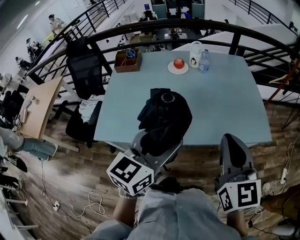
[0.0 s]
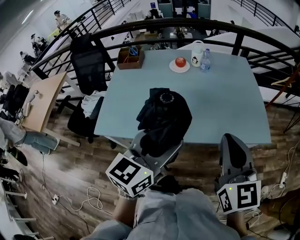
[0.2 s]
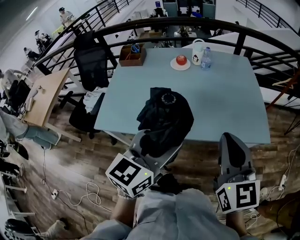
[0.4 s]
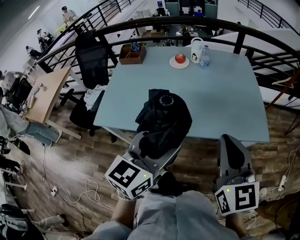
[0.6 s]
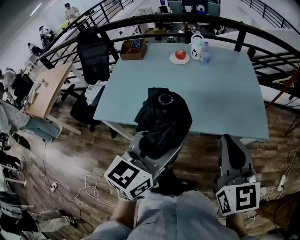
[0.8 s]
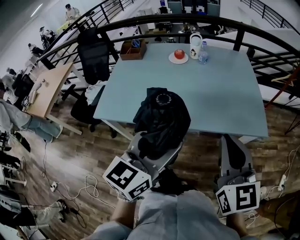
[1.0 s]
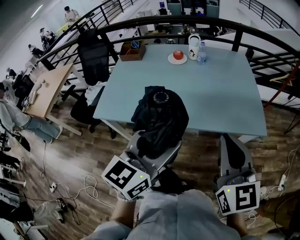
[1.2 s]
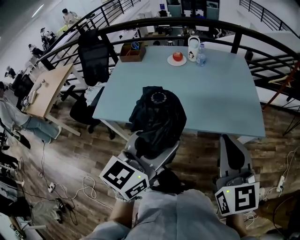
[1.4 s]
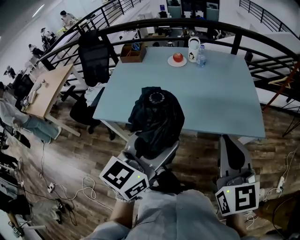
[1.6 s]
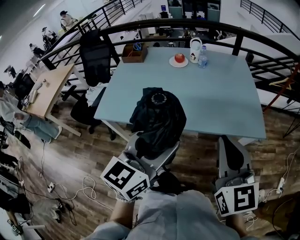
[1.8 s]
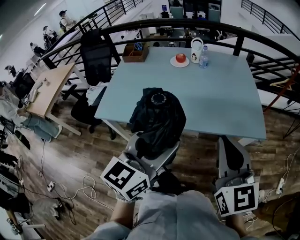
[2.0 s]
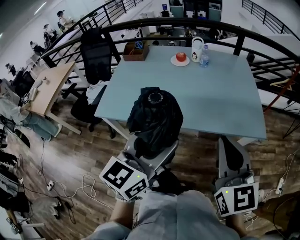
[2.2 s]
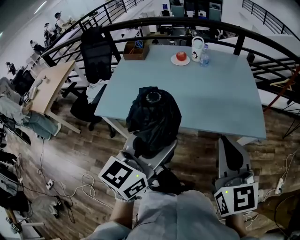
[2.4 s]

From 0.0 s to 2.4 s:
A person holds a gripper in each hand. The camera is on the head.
From 0.0 s to 1.2 s: The two grippers go roughly 10 cm to the right and backward.
From 1.2 s to 2.4 s: There are only small adjustments of the grippers.

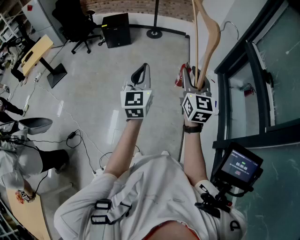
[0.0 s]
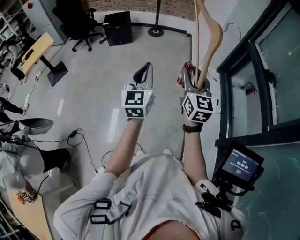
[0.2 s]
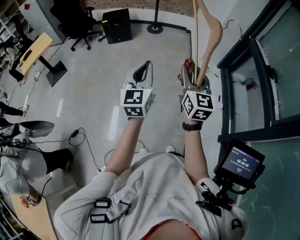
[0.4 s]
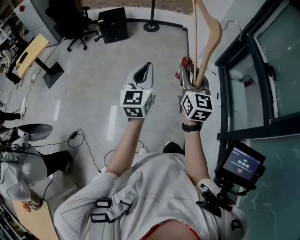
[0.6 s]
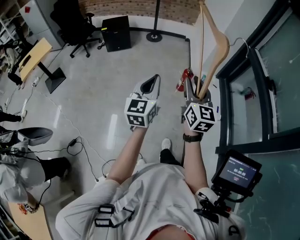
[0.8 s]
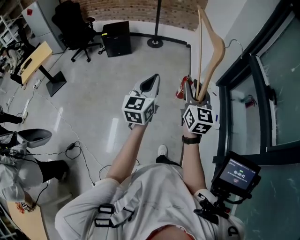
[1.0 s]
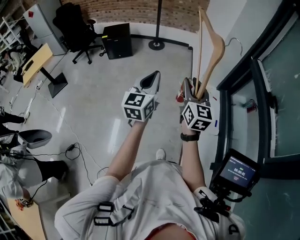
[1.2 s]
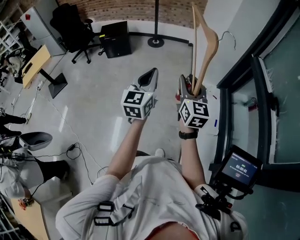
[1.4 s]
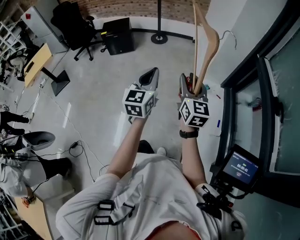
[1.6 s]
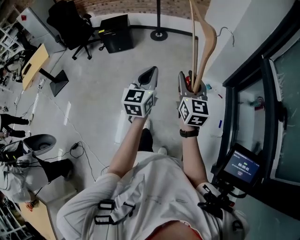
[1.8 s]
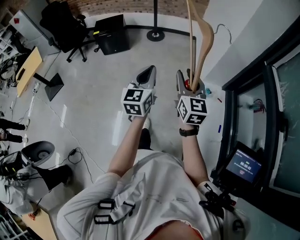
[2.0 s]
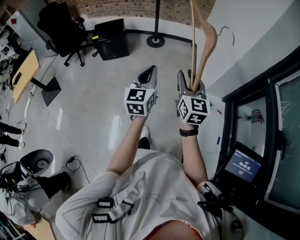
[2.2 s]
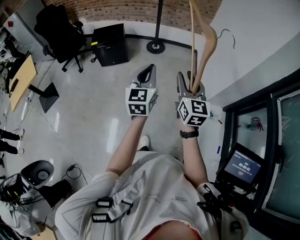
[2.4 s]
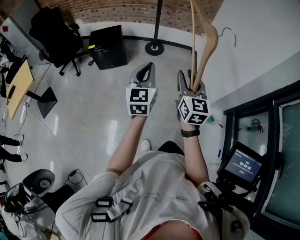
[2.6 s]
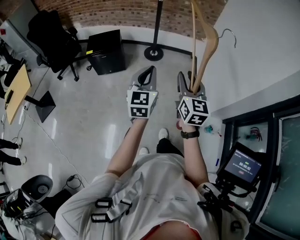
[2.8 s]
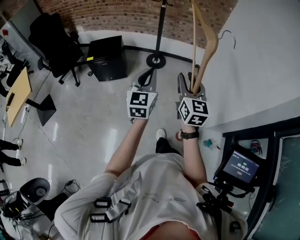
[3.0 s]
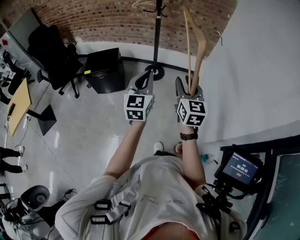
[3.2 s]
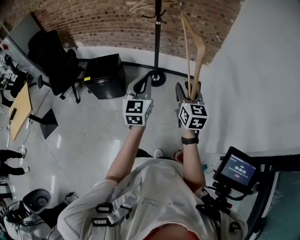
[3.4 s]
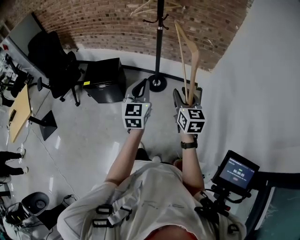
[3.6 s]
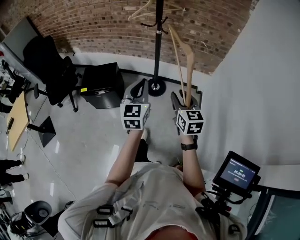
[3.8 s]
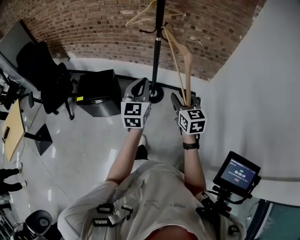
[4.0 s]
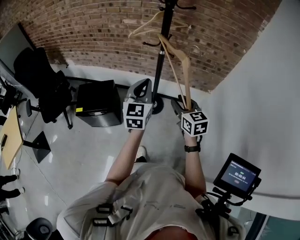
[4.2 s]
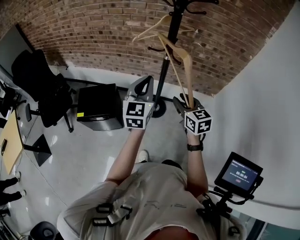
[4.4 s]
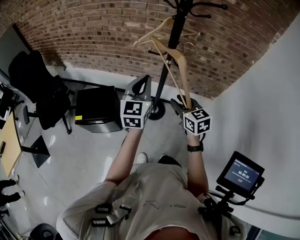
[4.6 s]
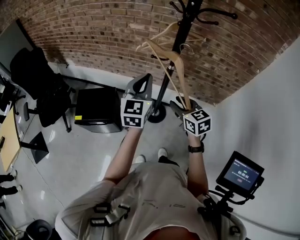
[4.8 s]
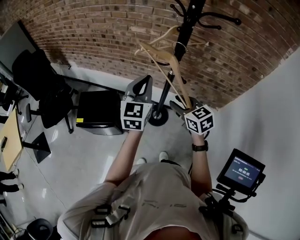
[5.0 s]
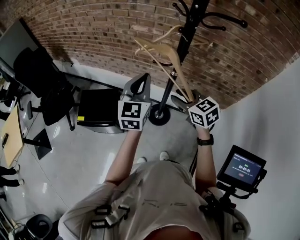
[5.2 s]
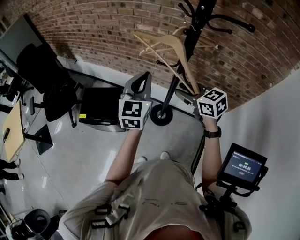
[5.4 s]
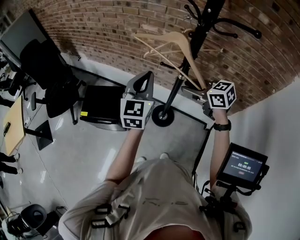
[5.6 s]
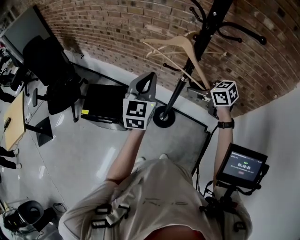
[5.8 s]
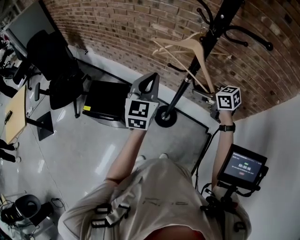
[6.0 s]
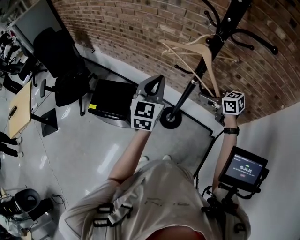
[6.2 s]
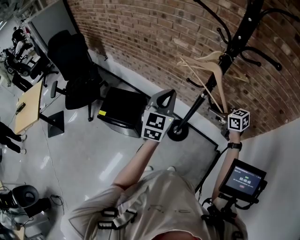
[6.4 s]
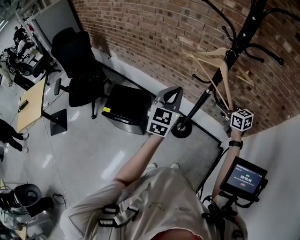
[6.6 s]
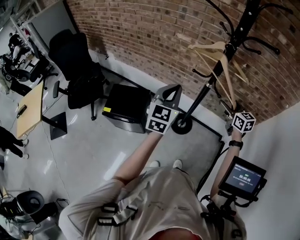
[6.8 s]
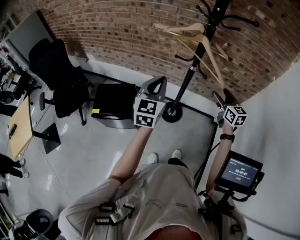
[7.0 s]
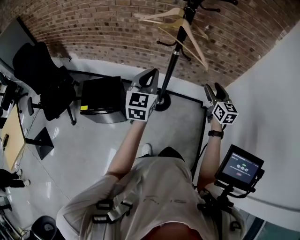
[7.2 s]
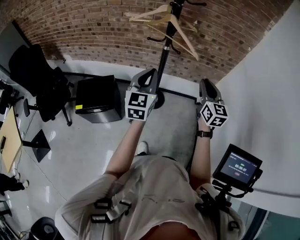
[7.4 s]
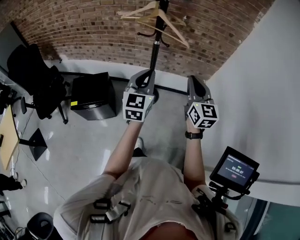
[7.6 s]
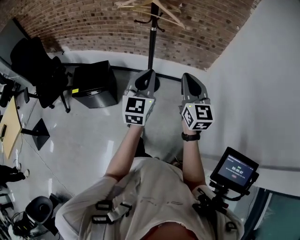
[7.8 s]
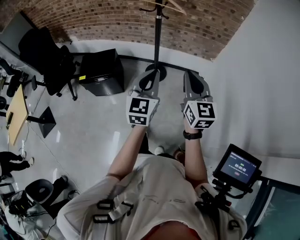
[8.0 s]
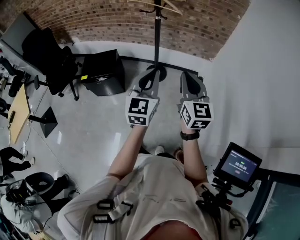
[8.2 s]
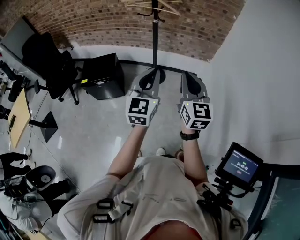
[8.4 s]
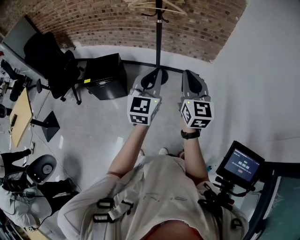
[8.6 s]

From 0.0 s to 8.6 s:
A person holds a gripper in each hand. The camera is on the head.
From 0.0 s to 1.4 s: The left gripper moves forward and to the right, approximately 20 cm. The right gripper heads forward, covering roughly 15 cm.
From 1.4 s to 2.8 s: The pair of grippers is taken forward, some 50 cm.
From 2.8 s to 4.4 s: Both grippers are carried forward, about 60 cm. The right gripper rotates some 30 degrees.
From 4.4 s to 5.8 s: The left gripper moves roughly 15 cm, while the right gripper ends up some 25 cm from where it was, and swivels approximately 40 degrees.
From 5.8 s to 7.2 s: The left gripper shifts by approximately 15 cm, while the right gripper changes place by some 20 cm, and changes its angle by some 60 degrees.
From 7.2 s to 8.6 s: The left gripper moves backward and to the right, about 30 cm; the right gripper shifts some 30 cm backward, and closes up.

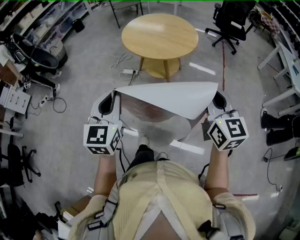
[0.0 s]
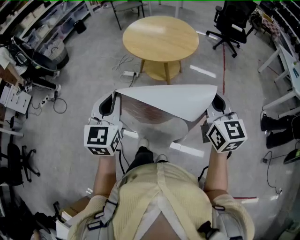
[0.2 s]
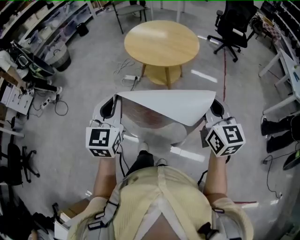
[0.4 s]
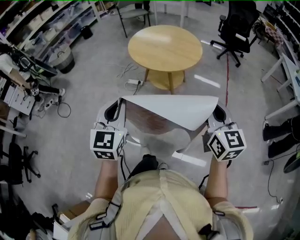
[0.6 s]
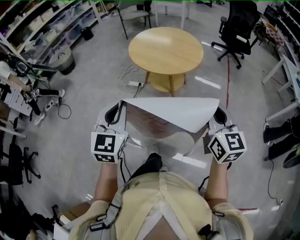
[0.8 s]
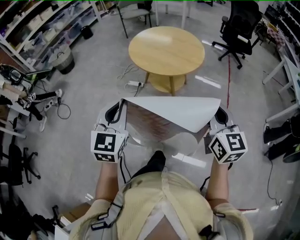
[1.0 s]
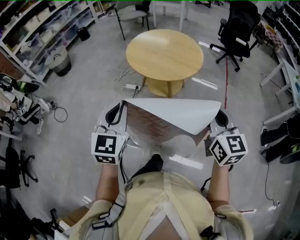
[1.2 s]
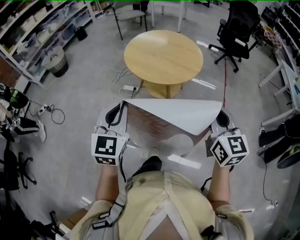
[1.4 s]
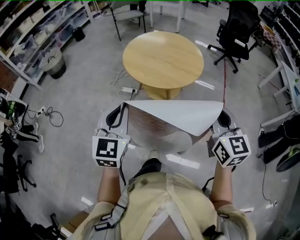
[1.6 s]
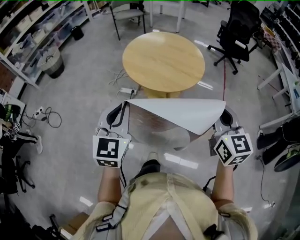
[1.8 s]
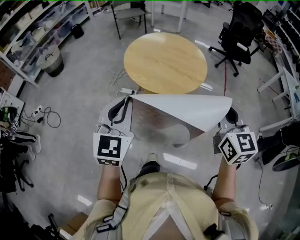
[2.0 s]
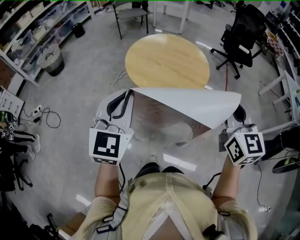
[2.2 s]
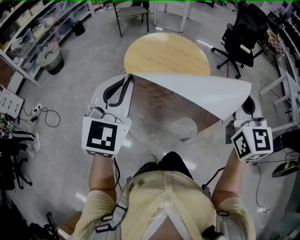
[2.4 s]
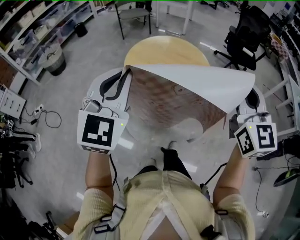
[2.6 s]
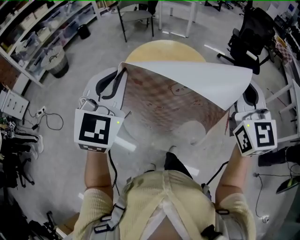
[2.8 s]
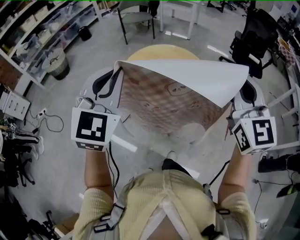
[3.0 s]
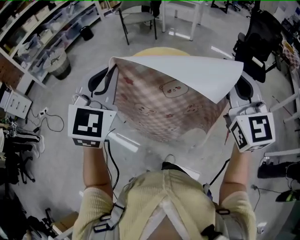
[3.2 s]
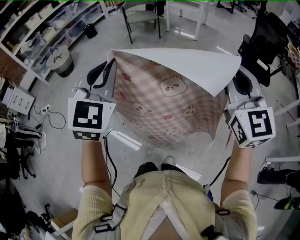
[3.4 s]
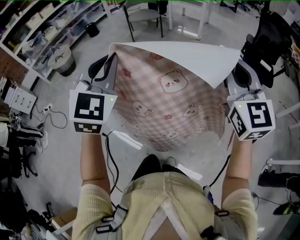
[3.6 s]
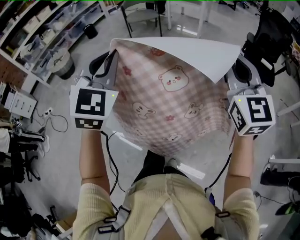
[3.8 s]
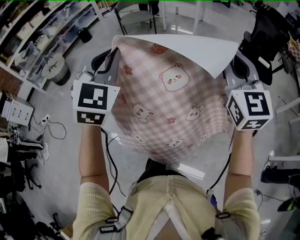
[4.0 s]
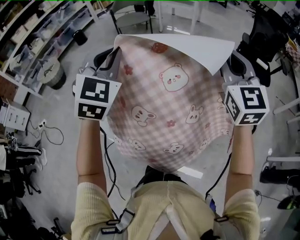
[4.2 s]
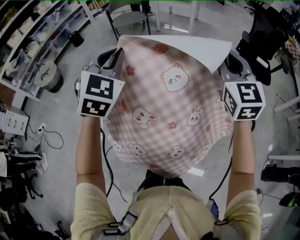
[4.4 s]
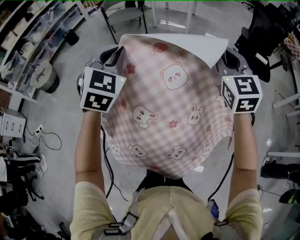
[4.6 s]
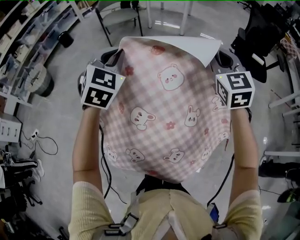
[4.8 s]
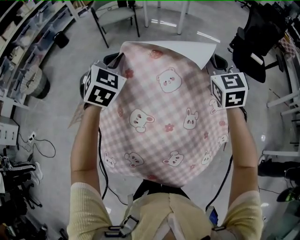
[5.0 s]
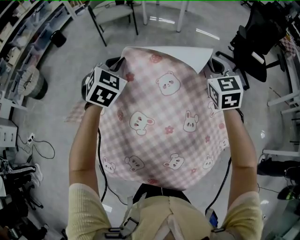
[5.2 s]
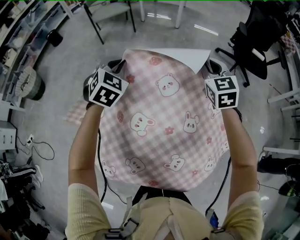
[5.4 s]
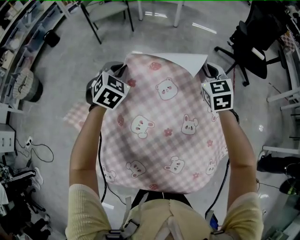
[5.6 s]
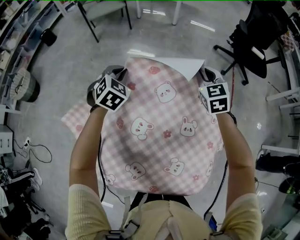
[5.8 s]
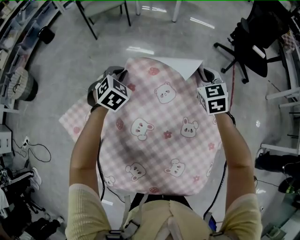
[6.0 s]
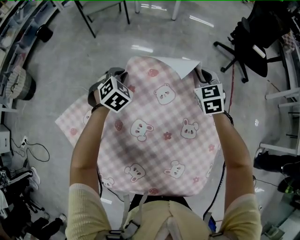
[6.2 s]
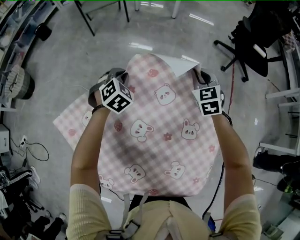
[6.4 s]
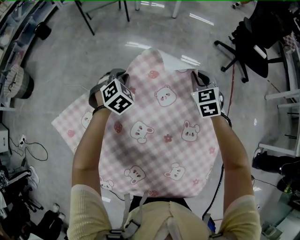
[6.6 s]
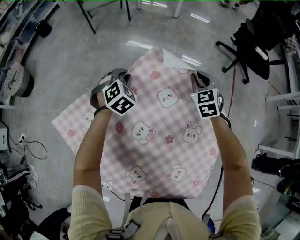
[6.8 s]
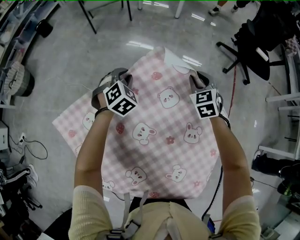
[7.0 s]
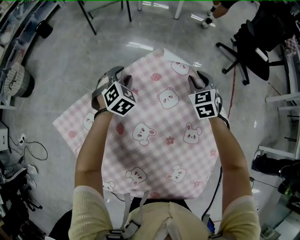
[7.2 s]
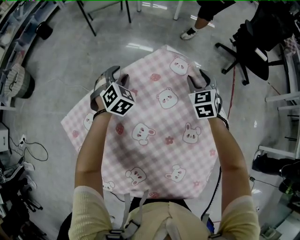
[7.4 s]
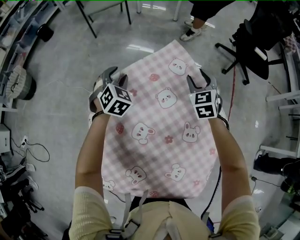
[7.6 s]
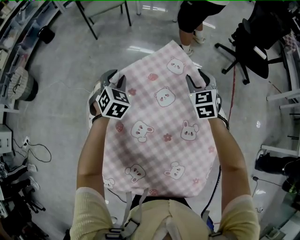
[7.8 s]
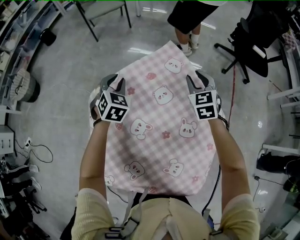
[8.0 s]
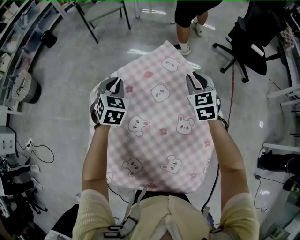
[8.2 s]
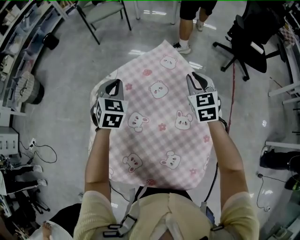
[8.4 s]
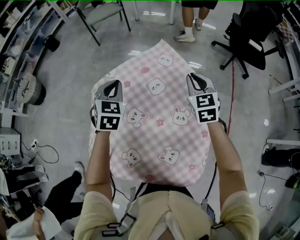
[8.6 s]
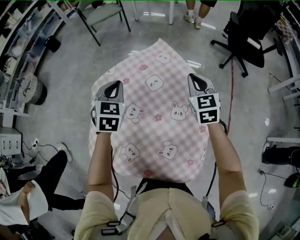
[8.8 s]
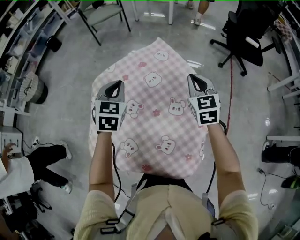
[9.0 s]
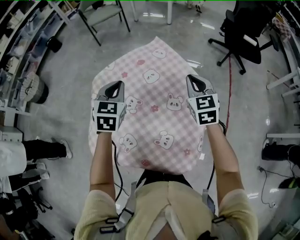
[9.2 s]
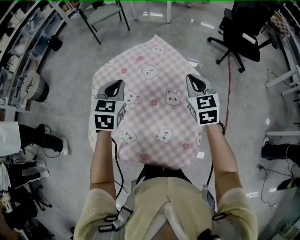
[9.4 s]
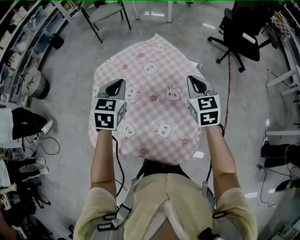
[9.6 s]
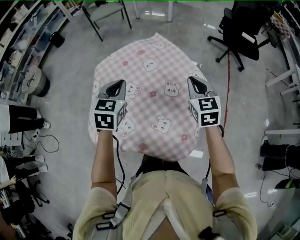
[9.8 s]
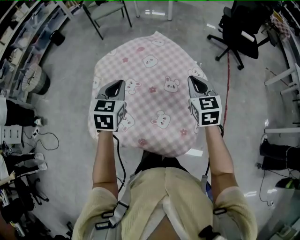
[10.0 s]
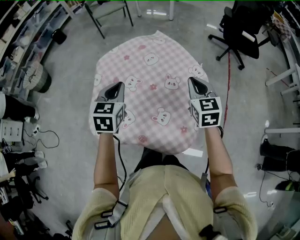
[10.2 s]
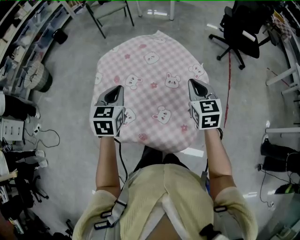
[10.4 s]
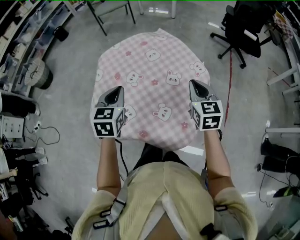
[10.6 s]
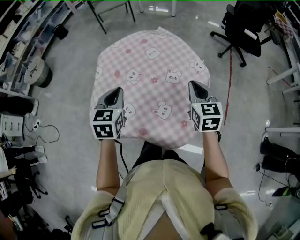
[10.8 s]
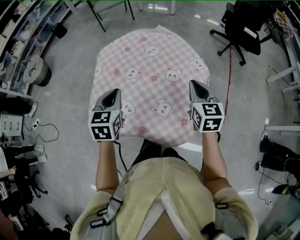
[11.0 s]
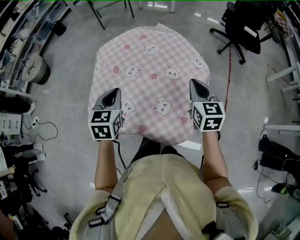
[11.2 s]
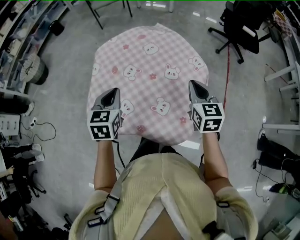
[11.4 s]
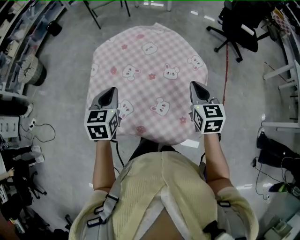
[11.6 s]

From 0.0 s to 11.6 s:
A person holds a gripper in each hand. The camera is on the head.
From 0.0 s to 1.4 s: Both grippers move forward, about 10 cm.
From 1.4 s to 2.8 s: Both grippers travel together forward and upward, approximately 25 cm. The right gripper turns by roughly 20 degrees.
From 2.8 s to 4.4 s: The grippers both shift forward by approximately 40 cm.
From 4.4 s to 5.8 s: The two grippers go approximately 35 cm downward and forward. The right gripper turns by approximately 20 degrees. Meanwhile the left gripper rotates about 30 degrees.
From 5.8 s to 7.2 s: The grippers both shift downward by some 10 cm. The left gripper opens.
From 7.2 s to 8.8 s: Both grippers travel together backward and upward, about 20 cm. The right gripper closes up, while the left gripper rotates roughly 30 degrees, and closes up.
From 8.8 s to 10.2 s: The two grippers go roughly 15 cm backward.
From 10.2 s to 11.6 s: The two grippers go about 5 cm backward.

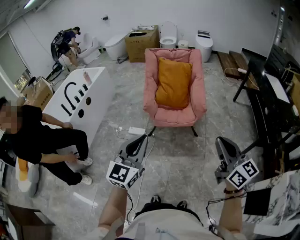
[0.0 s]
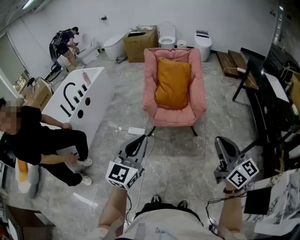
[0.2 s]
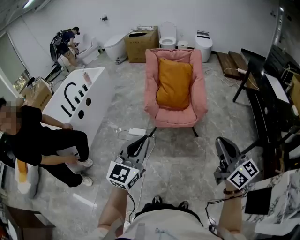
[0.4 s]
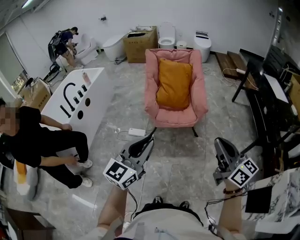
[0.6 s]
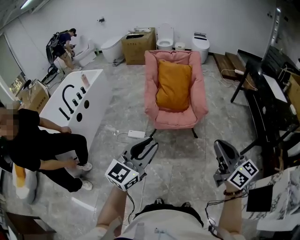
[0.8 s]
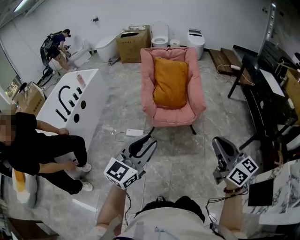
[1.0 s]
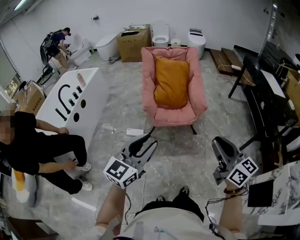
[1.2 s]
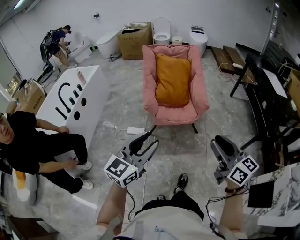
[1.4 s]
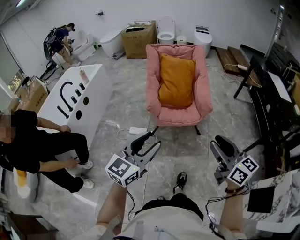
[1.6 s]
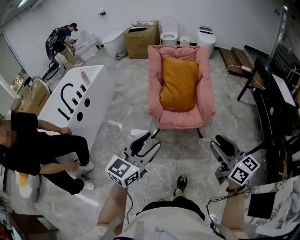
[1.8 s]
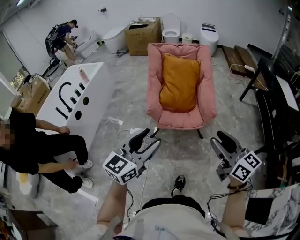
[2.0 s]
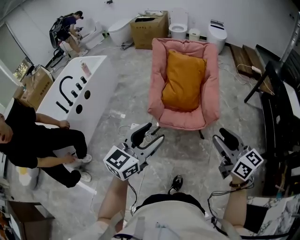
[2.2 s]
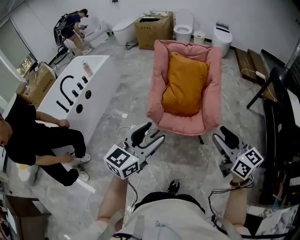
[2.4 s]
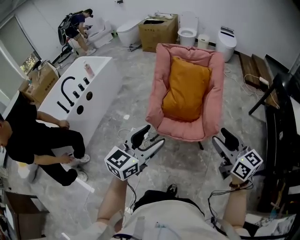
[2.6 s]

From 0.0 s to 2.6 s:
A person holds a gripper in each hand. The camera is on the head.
From 0.0 s to 1.2 s: The right gripper goes some 10 cm to the left.
From 1.2 s to 2.6 s: Both grippers move forward, approximately 30 cm. The right gripper opens.
